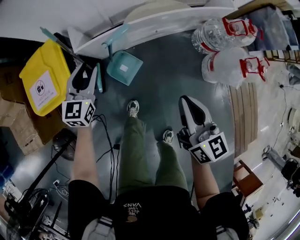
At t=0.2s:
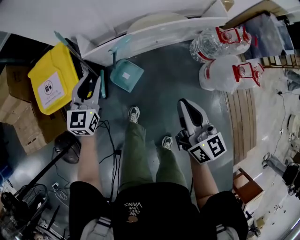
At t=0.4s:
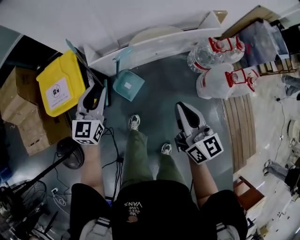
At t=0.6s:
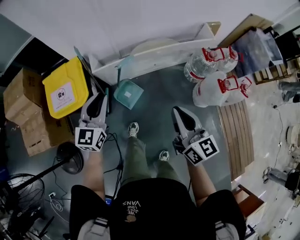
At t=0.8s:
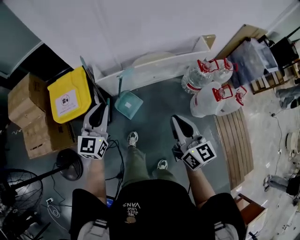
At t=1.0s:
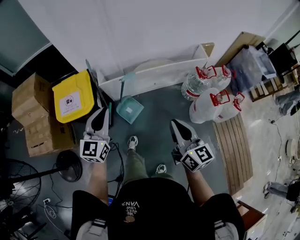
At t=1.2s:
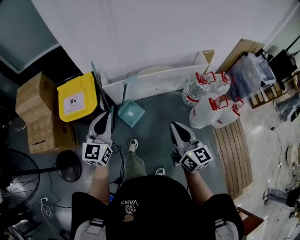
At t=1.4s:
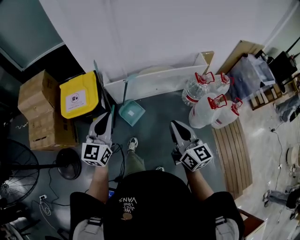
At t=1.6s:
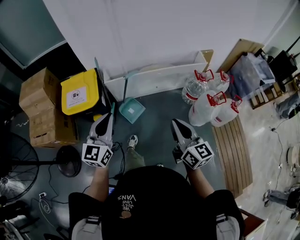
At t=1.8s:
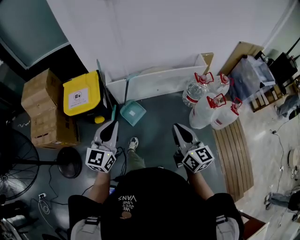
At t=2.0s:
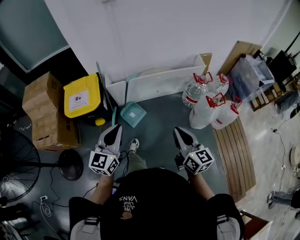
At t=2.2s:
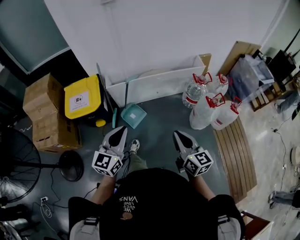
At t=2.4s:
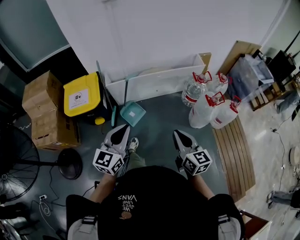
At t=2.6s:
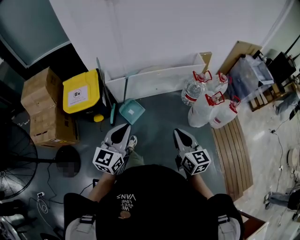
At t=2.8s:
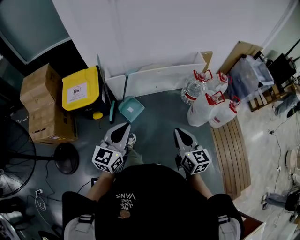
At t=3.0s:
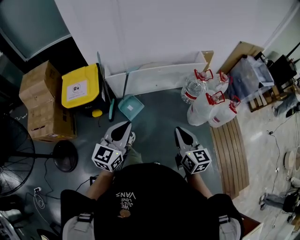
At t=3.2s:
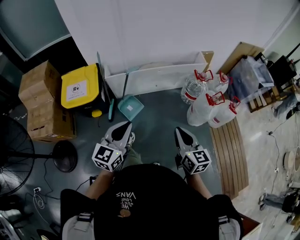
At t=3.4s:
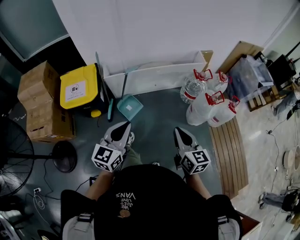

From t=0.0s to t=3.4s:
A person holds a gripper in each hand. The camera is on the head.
From t=0.0s to t=1.6s: The left gripper is displaced backward and upward by approximately 40 cm, swivels roughly 20 degrees, and closes; the right gripper moves backward and upward, approximately 25 cm.
From t=1.6s to t=3.4s: The right gripper is displaced downward by some 5 cm, while the left gripper shifts some 10 cm to the right and backward.

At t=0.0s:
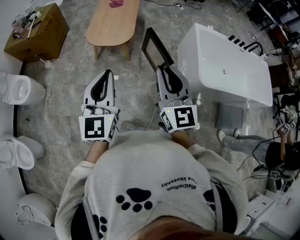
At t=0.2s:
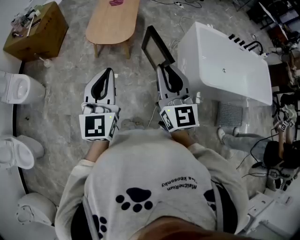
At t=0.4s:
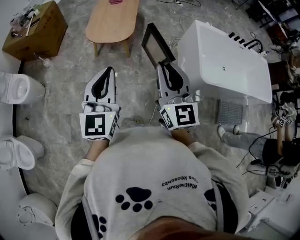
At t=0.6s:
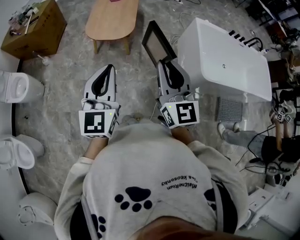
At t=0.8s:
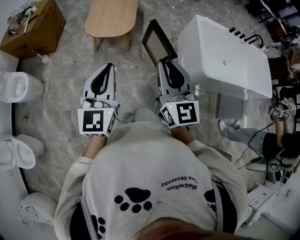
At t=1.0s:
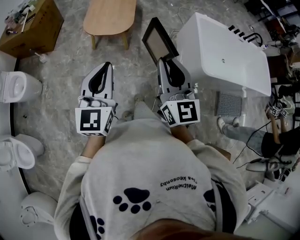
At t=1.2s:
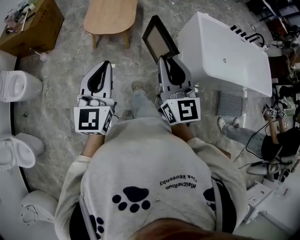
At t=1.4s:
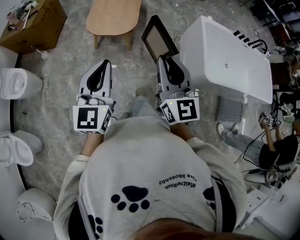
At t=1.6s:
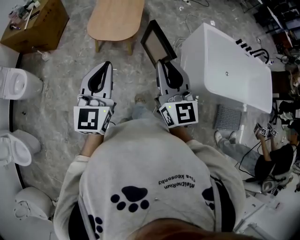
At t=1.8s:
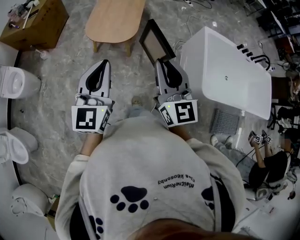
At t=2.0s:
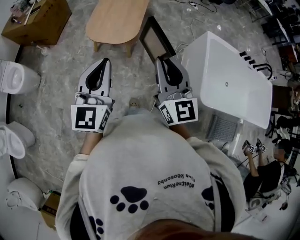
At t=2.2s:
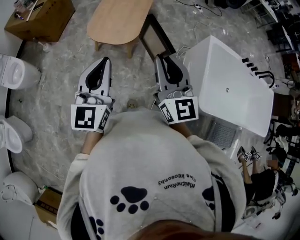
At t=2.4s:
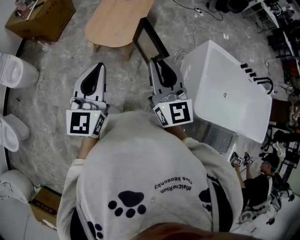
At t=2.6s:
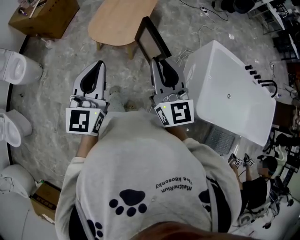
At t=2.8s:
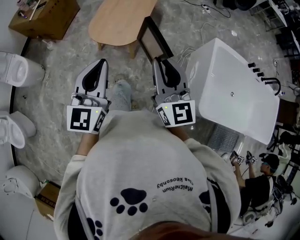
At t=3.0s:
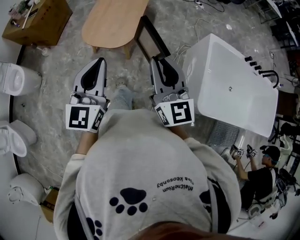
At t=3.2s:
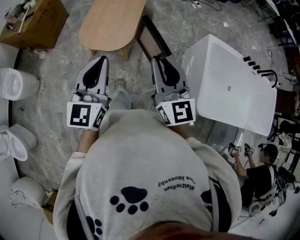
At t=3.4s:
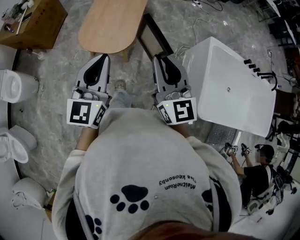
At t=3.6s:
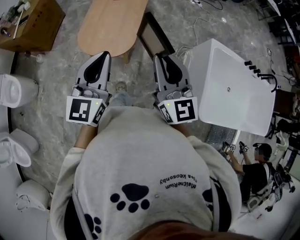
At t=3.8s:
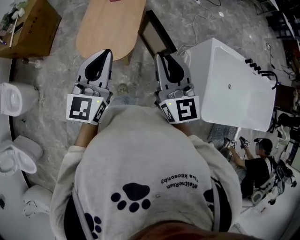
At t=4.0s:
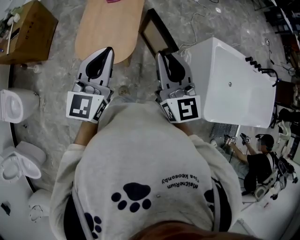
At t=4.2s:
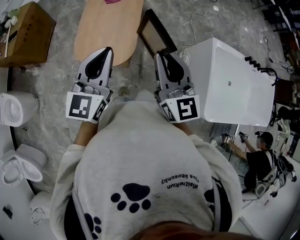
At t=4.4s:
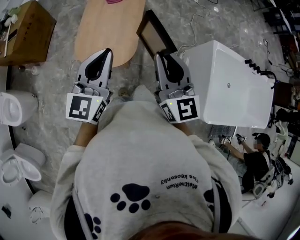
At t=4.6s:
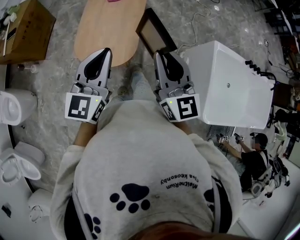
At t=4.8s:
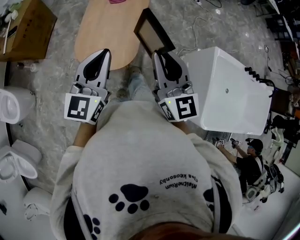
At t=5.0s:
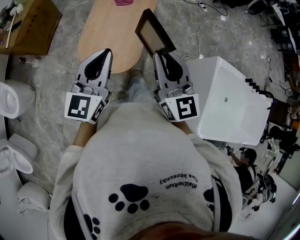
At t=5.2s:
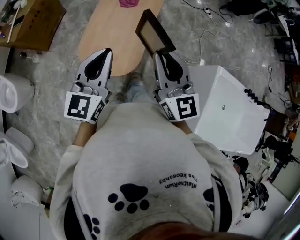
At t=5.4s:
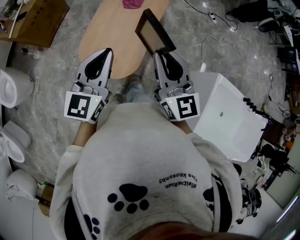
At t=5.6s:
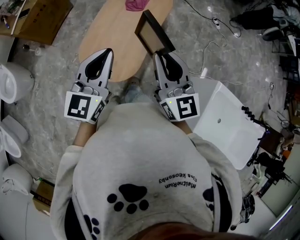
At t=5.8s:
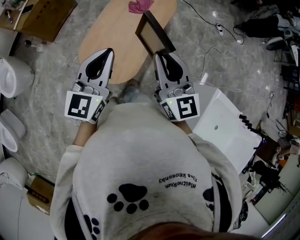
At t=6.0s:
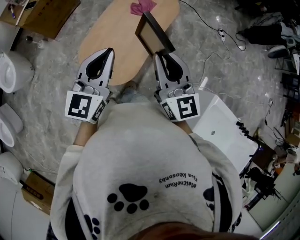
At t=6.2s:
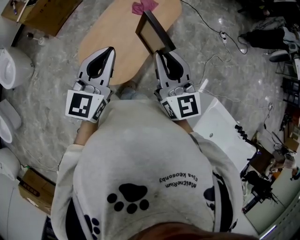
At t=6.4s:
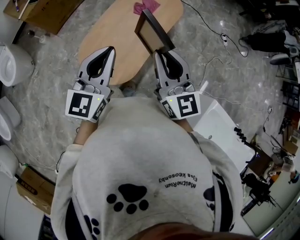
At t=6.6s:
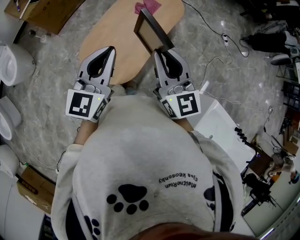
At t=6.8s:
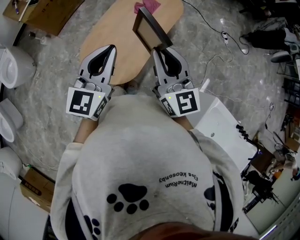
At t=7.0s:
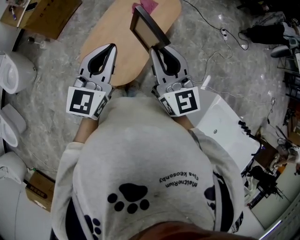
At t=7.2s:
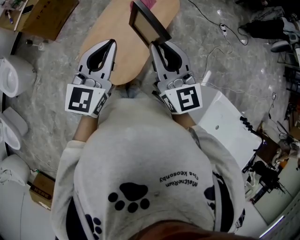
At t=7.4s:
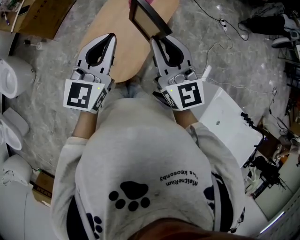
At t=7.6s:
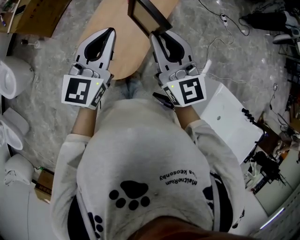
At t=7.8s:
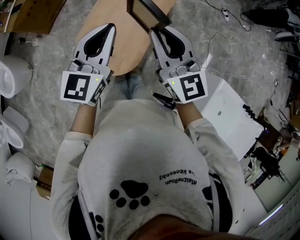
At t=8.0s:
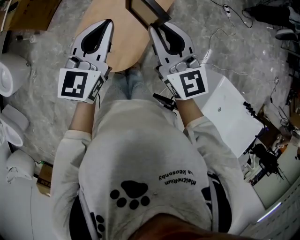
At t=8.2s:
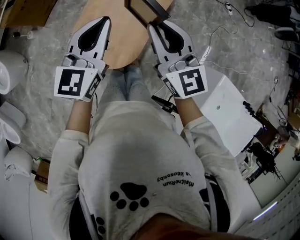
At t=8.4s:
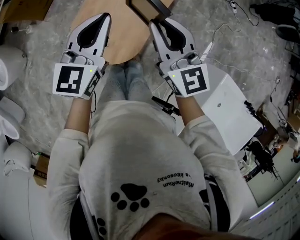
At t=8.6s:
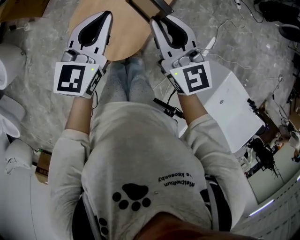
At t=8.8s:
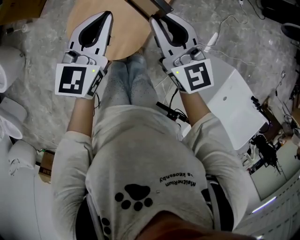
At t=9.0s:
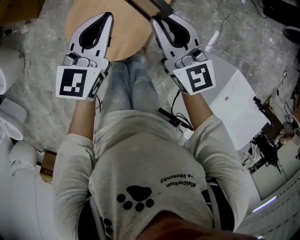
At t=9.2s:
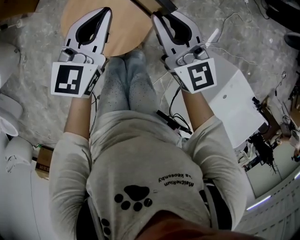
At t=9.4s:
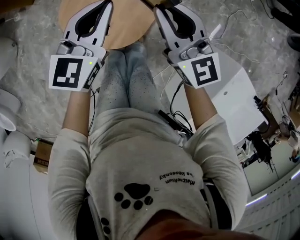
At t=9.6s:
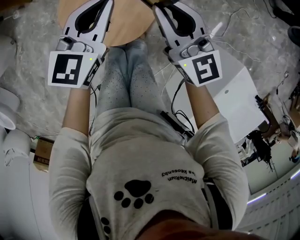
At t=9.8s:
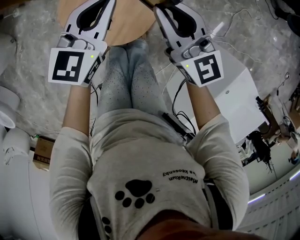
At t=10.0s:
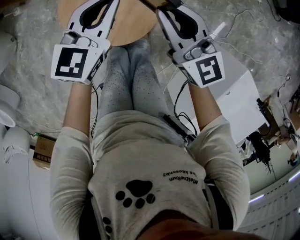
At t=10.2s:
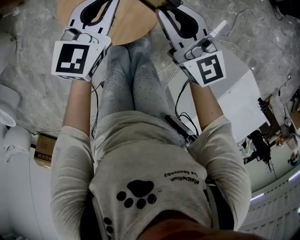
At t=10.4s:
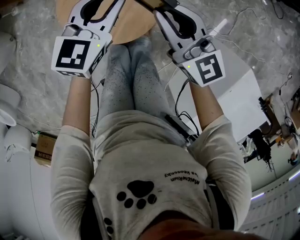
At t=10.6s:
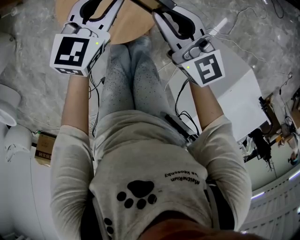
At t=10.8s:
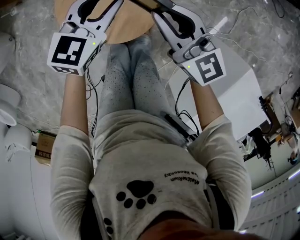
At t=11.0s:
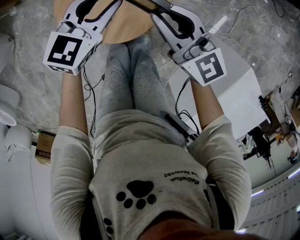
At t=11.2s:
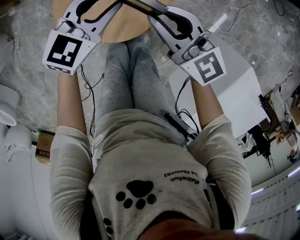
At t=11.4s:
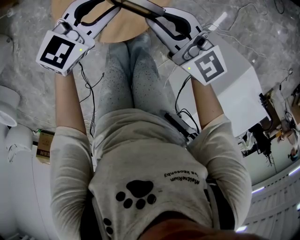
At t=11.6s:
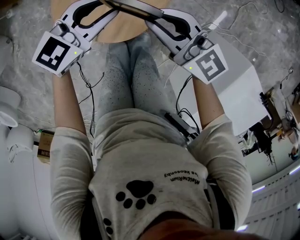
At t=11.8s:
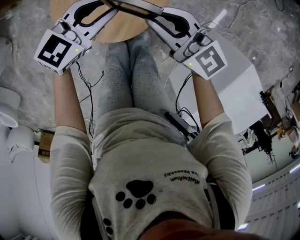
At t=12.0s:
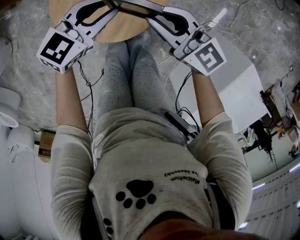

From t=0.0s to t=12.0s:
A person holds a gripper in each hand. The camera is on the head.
From t=0.0s to t=1.6s: The two grippers go some 10 cm forward.
From t=1.6s to t=3.0s: The grippers both shift forward and to the right by about 15 cm.
From t=3.0s to t=4.4s: Both grippers travel together forward, approximately 20 cm.
From t=4.4s to t=6.0s: The two grippers go approximately 20 cm forward. The left gripper rotates approximately 20 degrees, while the right gripper rotates approximately 30 degrees.
From t=6.0s to t=7.6s: The two grippers go approximately 5 cm forward.
From t=7.6s to t=9.0s: Both grippers travel together downward, about 15 cm.
From t=9.0s to t=10.4s: The two grippers go about 10 cm downward. The left gripper opens up.
From t=10.4s to t=12.0s: The left gripper heads downward, covering roughly 5 cm, and rotates some 30 degrees.

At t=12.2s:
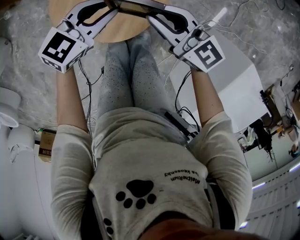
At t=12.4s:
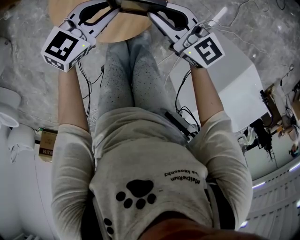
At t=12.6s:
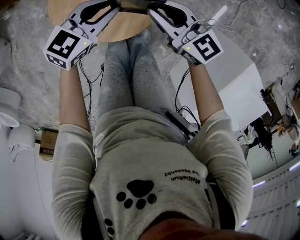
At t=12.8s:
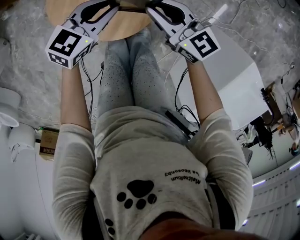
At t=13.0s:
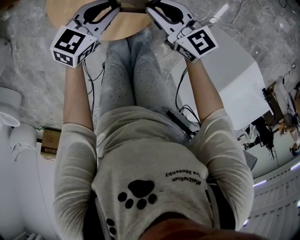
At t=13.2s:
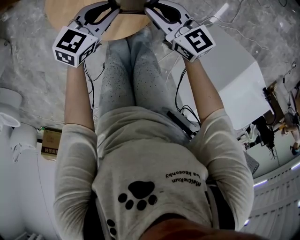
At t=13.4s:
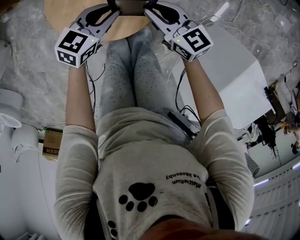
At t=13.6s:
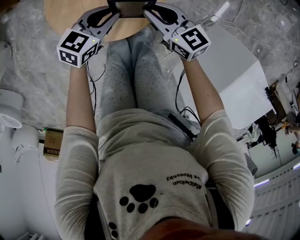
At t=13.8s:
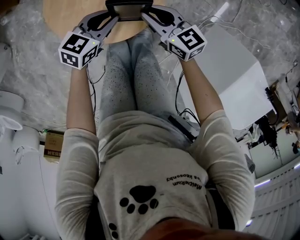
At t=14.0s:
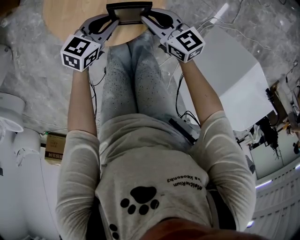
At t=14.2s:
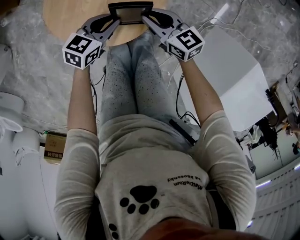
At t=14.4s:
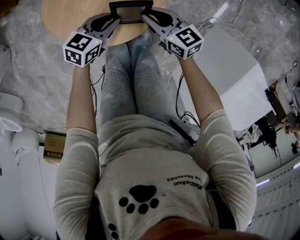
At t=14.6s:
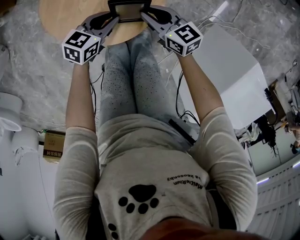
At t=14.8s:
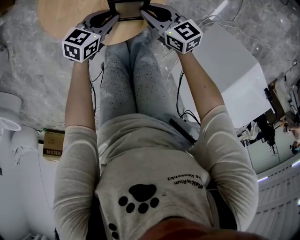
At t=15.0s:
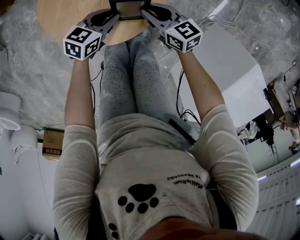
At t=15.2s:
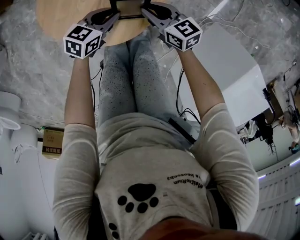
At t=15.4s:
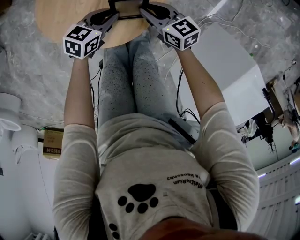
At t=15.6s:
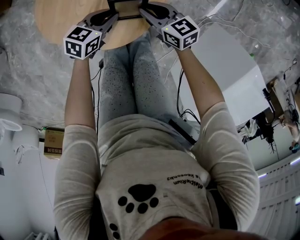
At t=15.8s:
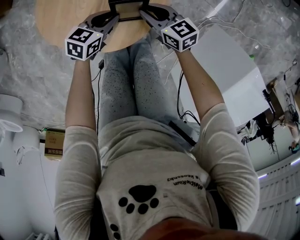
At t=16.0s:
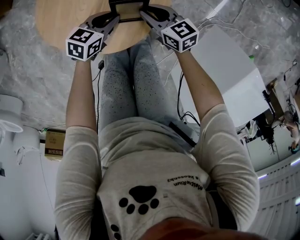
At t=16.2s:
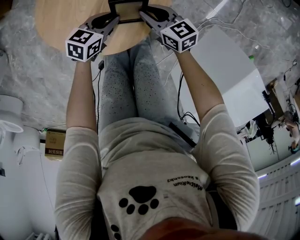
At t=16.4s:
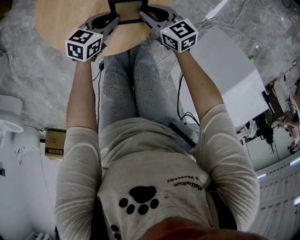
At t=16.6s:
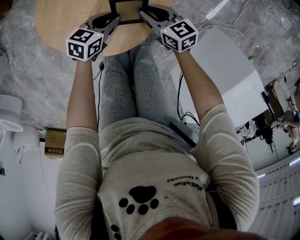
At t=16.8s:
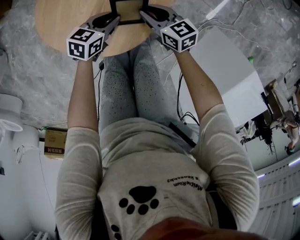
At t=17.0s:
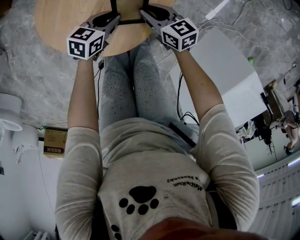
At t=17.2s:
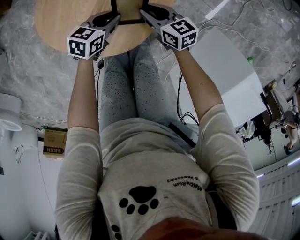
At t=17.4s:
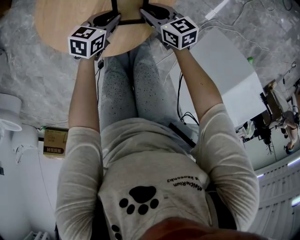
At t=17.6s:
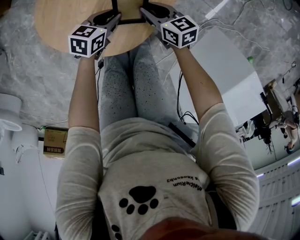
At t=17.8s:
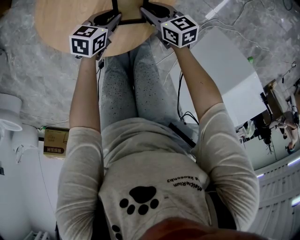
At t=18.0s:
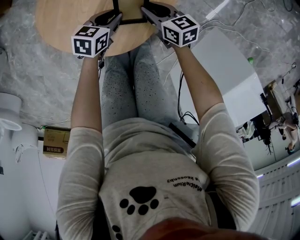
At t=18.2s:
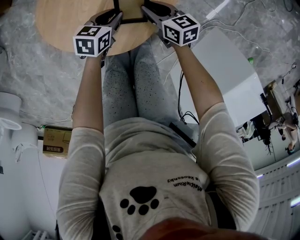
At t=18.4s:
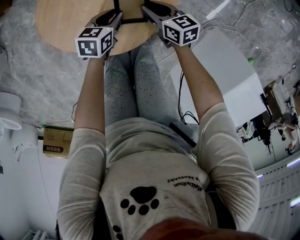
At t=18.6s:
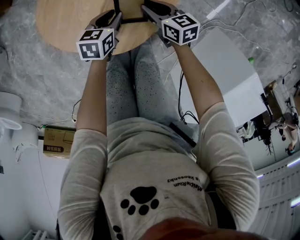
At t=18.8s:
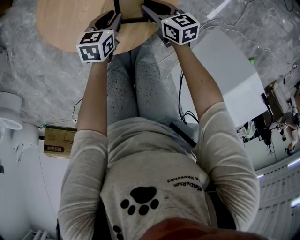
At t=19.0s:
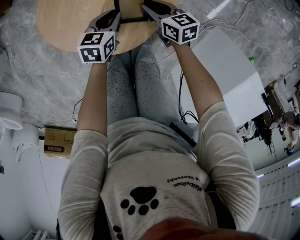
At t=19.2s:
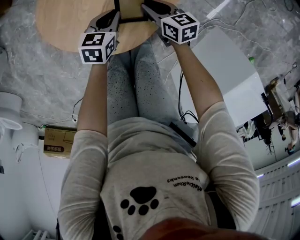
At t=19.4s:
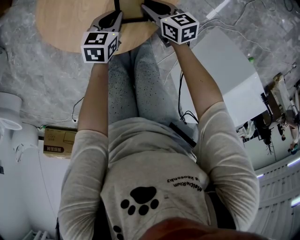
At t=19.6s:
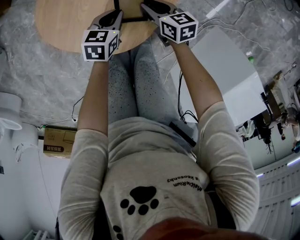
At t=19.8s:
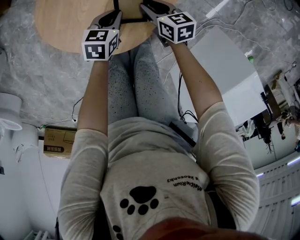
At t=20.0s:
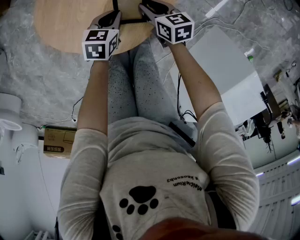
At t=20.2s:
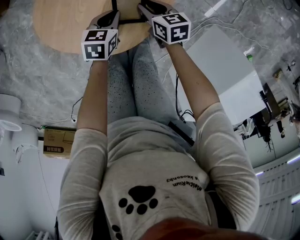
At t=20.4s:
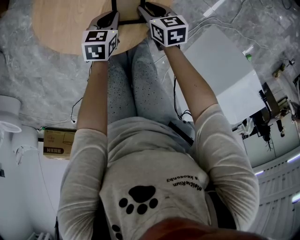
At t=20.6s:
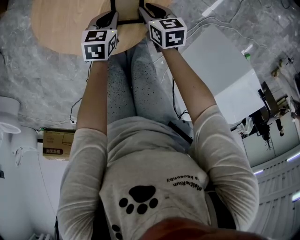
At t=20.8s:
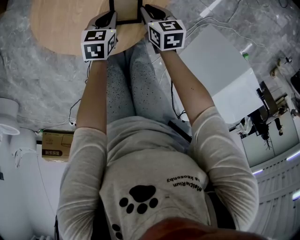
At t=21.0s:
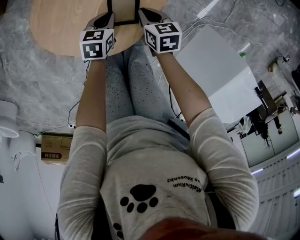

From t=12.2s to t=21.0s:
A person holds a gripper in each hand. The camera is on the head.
From t=12.2s to t=13.6s: Both grippers travel together downward, some 10 cm.
From t=13.6s to t=15.2s: The grippers both shift downward by approximately 10 cm.
From t=15.2s to t=18.0s: The grippers move only a little.
From t=18.0s to t=19.6s: There are only small adjustments of the grippers.
From t=19.6s to t=21.0s: The right gripper closes up.
